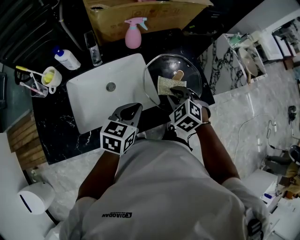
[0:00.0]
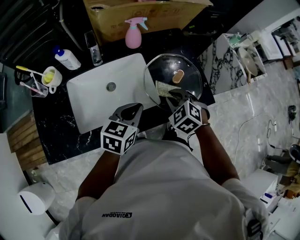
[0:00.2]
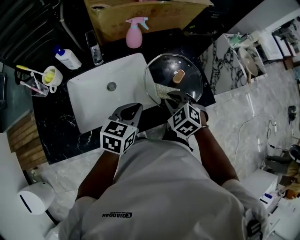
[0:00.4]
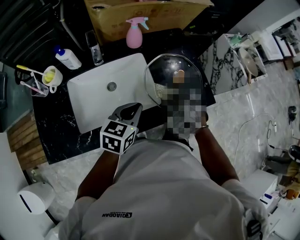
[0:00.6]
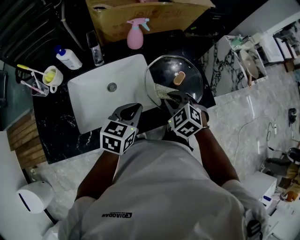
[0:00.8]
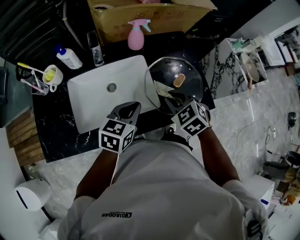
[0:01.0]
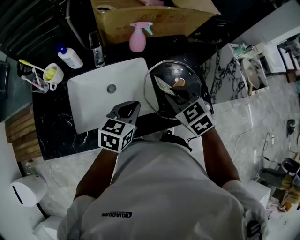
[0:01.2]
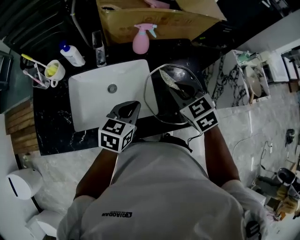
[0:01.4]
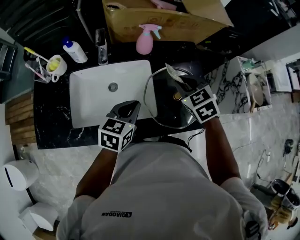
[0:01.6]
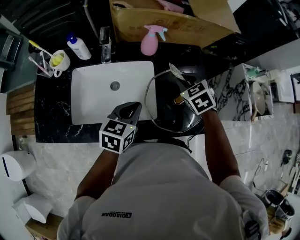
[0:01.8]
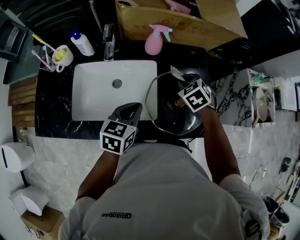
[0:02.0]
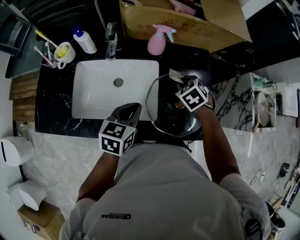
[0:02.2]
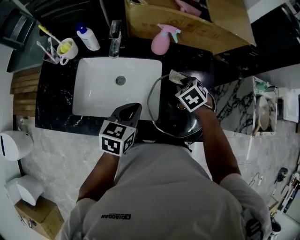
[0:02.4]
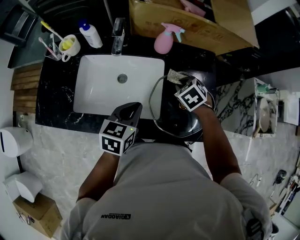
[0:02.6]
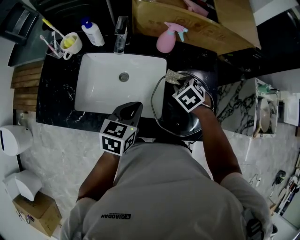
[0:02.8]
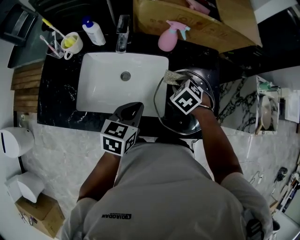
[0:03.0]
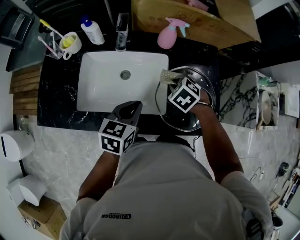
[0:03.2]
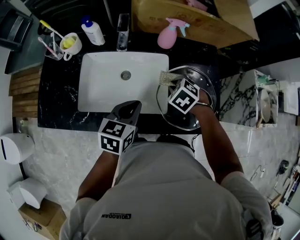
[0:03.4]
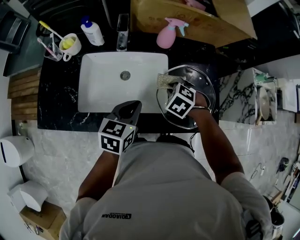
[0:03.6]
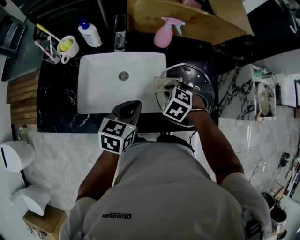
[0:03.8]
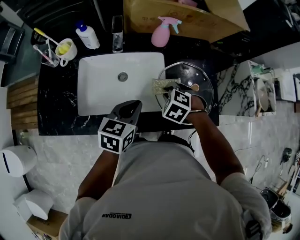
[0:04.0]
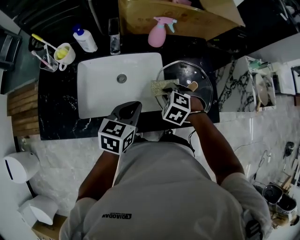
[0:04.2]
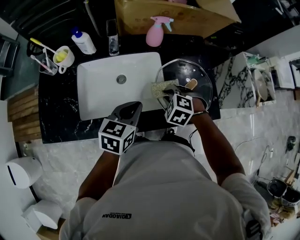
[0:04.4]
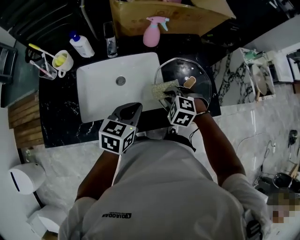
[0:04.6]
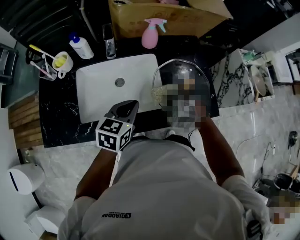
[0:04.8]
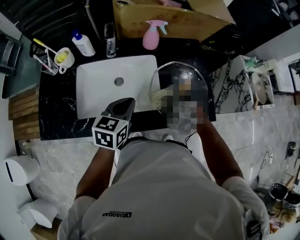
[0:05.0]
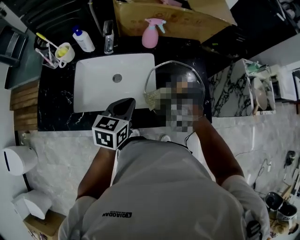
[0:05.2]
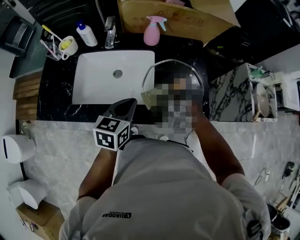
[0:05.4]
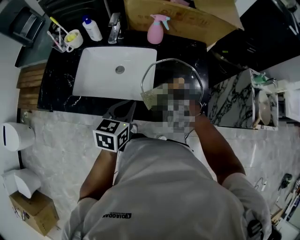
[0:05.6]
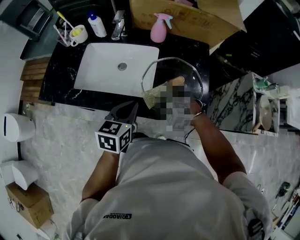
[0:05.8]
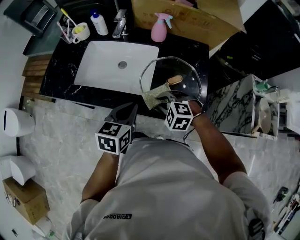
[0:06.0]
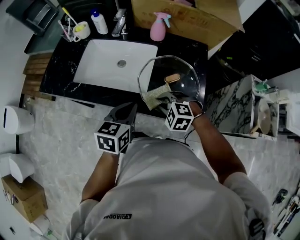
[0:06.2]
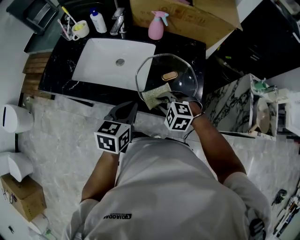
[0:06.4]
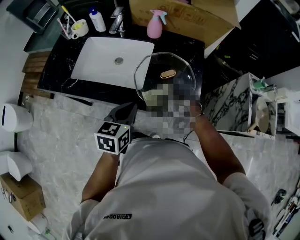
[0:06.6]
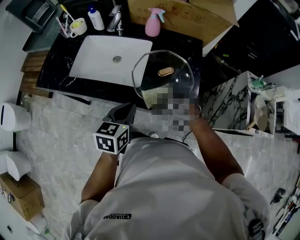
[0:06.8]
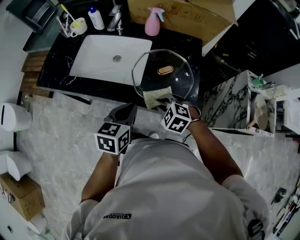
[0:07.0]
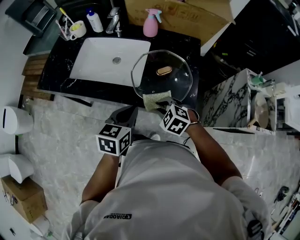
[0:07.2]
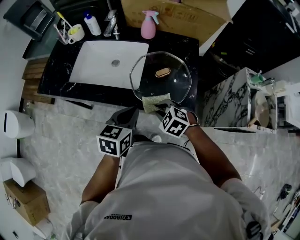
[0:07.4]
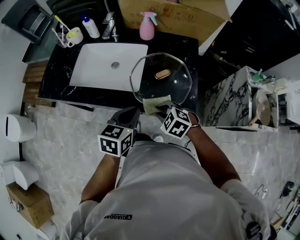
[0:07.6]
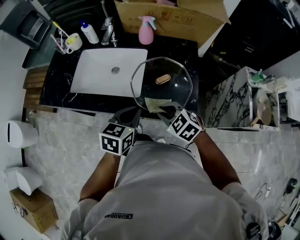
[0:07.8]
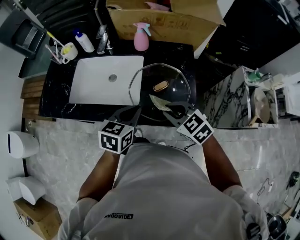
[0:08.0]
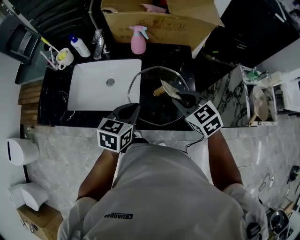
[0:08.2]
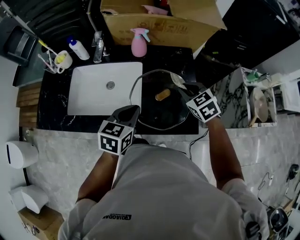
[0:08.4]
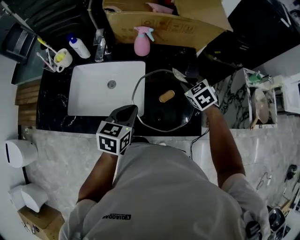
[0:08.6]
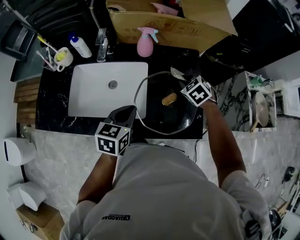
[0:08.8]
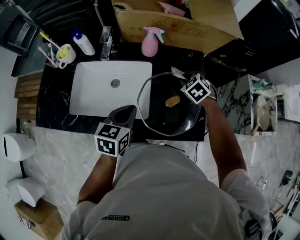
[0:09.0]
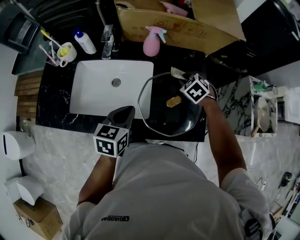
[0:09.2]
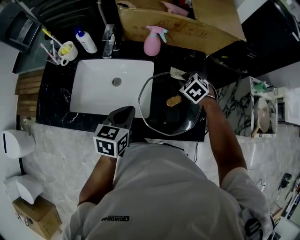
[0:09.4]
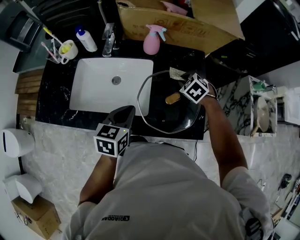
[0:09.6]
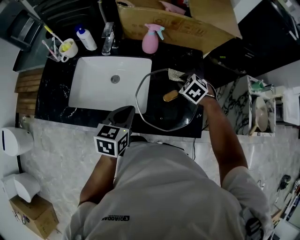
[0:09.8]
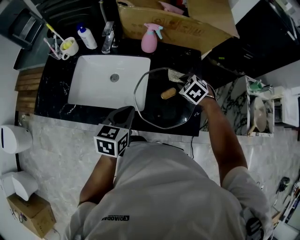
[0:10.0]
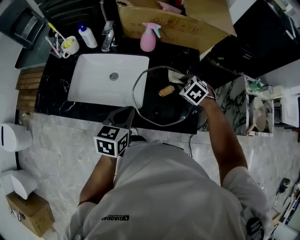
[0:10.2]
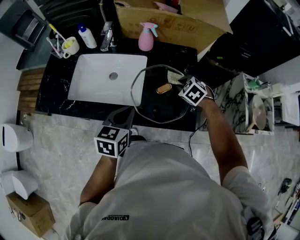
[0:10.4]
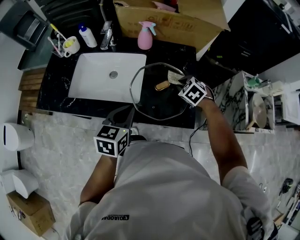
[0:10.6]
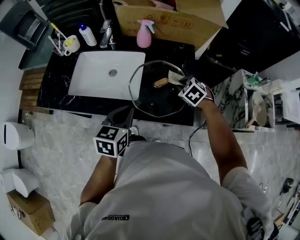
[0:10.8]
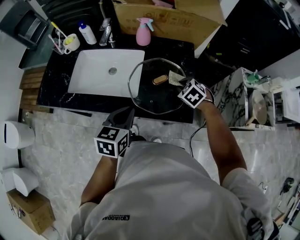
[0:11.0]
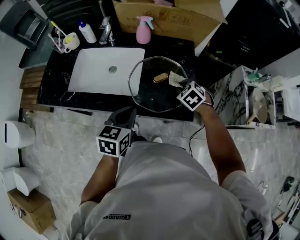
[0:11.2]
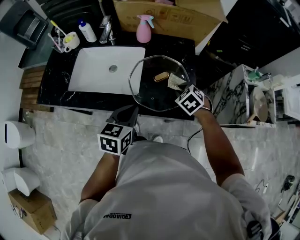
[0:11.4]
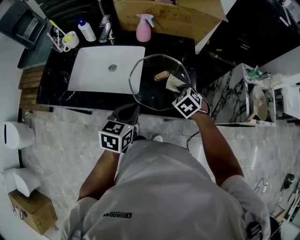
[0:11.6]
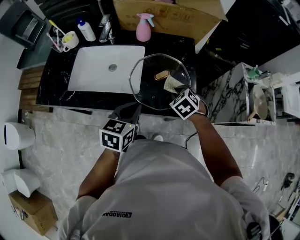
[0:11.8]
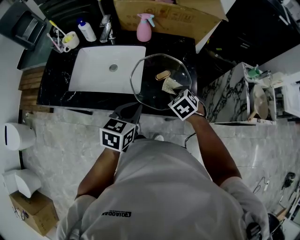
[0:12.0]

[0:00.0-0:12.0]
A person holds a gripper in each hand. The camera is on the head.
0:00.0 to 0:01.6: The right gripper shifts roughly 15 cm forward and upward, while the left gripper goes approximately 5 cm forward.
0:01.6 to 0:03.0: The right gripper travels downward and to the left by approximately 10 cm, and rotates roughly 30 degrees.
0:03.0 to 0:04.4: The right gripper travels backward by some 10 cm.
0:04.4 to 0:06.0: The right gripper ends up roughly 10 cm from where it was, and turns by roughly 30 degrees. Meanwhile the left gripper ends up about 15 cm from where it was, and changes its angle by about 20 degrees.
0:06.0 to 0:07.6: The two grippers go roughly 5 cm backward. The right gripper swivels some 20 degrees.
0:07.6 to 0:09.0: The left gripper goes approximately 15 cm forward and to the left. The right gripper is displaced forward by some 30 cm, and changes its angle by roughly 30 degrees.
0:09.0 to 0:10.4: The two grippers go about 10 cm backward.
0:10.4 to 0:12.0: The left gripper ends up roughly 5 cm from where it was, while the right gripper shifts roughly 10 cm backward.

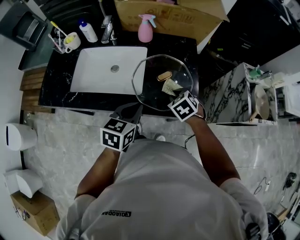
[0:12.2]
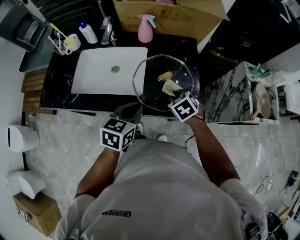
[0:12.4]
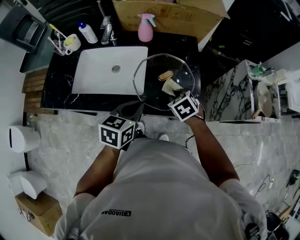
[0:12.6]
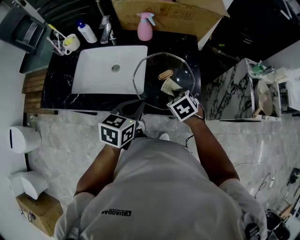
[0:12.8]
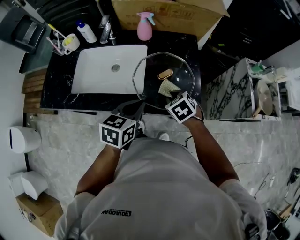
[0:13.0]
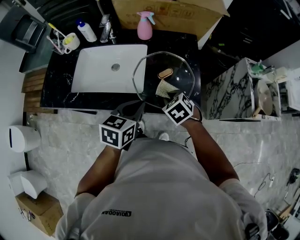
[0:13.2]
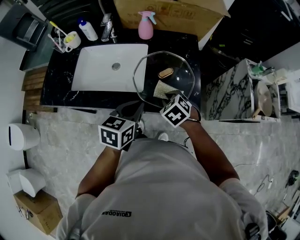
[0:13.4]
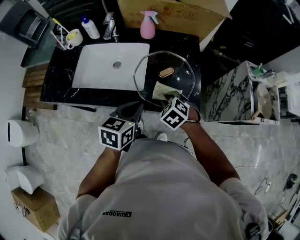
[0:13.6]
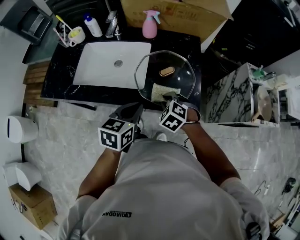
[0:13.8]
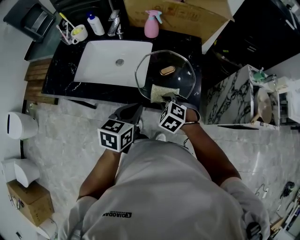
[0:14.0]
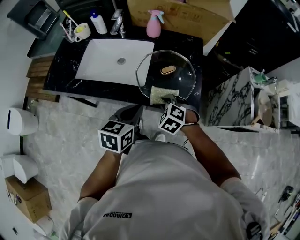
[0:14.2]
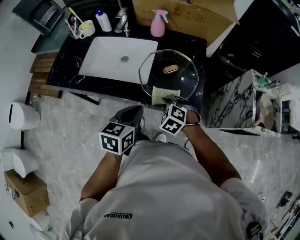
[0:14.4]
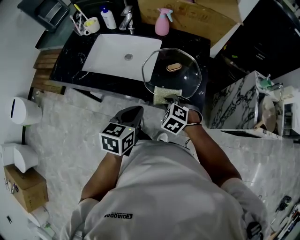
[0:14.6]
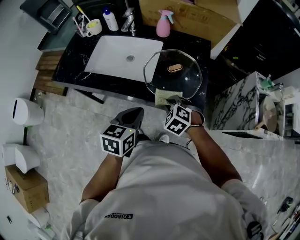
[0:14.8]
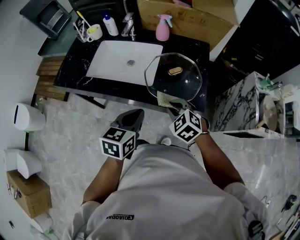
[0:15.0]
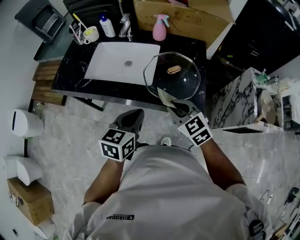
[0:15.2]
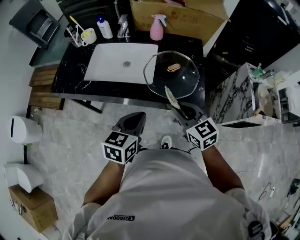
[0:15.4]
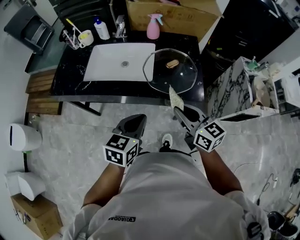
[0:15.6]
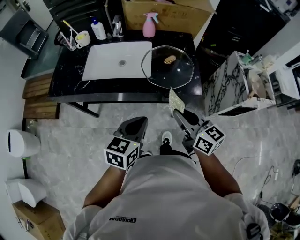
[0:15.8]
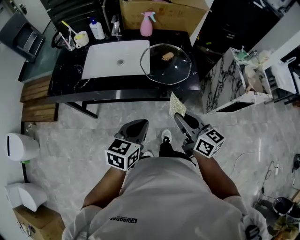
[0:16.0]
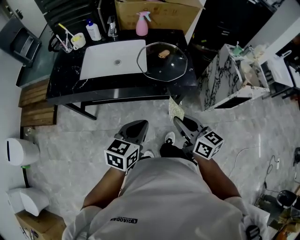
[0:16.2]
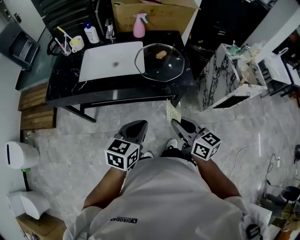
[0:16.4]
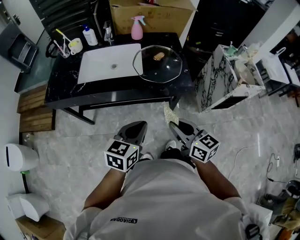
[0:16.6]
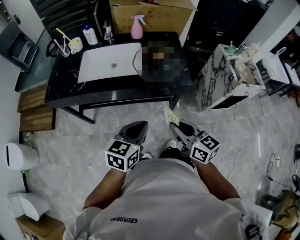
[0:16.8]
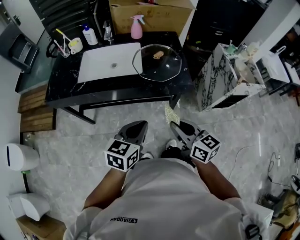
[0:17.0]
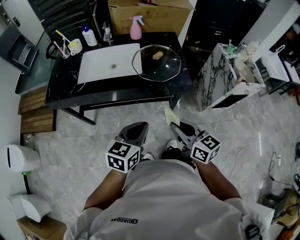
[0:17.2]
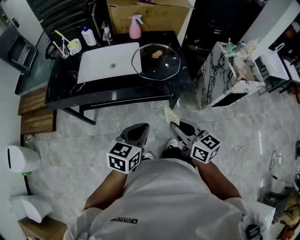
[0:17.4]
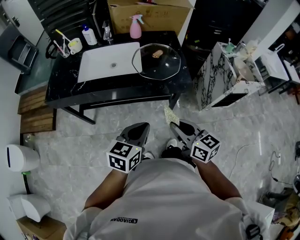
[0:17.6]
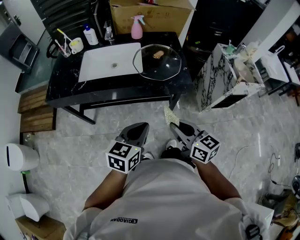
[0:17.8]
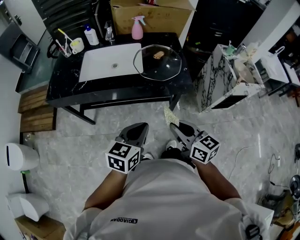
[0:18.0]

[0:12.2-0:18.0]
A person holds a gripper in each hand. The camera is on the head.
0:12.2 to 0:13.6: The right gripper ends up roughly 5 cm from where it was.
0:13.6 to 0:15.0: The left gripper shifts approximately 10 cm backward. The right gripper travels backward and upward by some 10 cm.
0:15.0 to 0:16.6: Both grippers travel together backward, approximately 20 cm. The right gripper tips its fingers upward by approximately 40 degrees. Meanwhile the left gripper rotates roughly 20 degrees.
0:16.6 to 0:18.0: There are only small adjustments of the grippers.

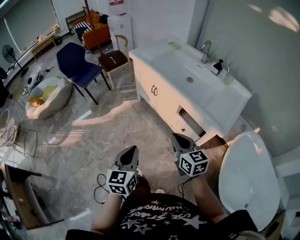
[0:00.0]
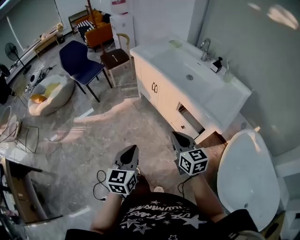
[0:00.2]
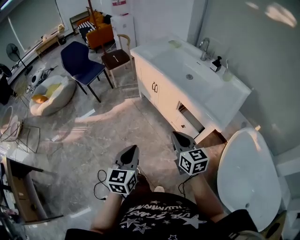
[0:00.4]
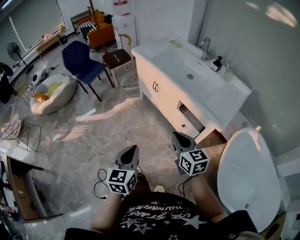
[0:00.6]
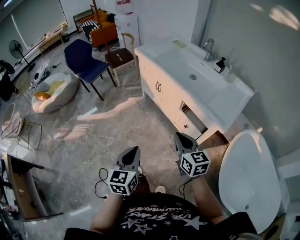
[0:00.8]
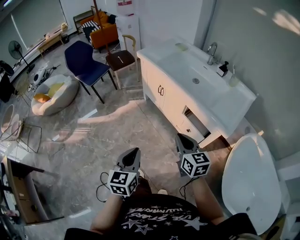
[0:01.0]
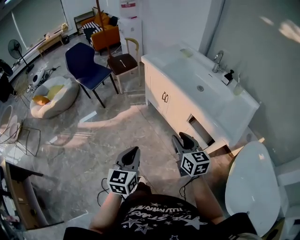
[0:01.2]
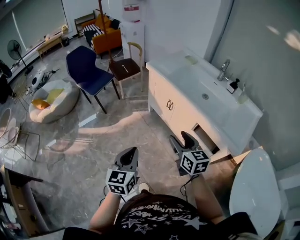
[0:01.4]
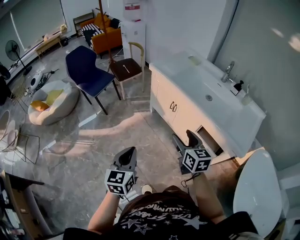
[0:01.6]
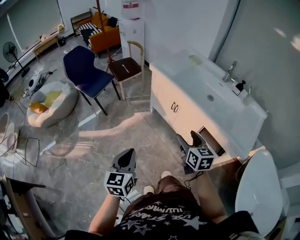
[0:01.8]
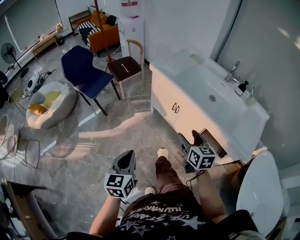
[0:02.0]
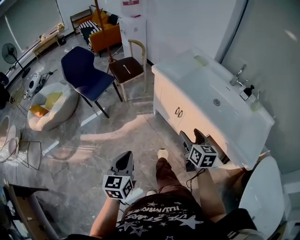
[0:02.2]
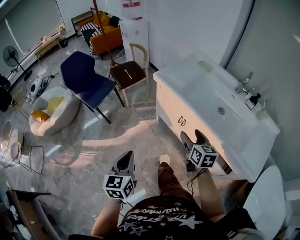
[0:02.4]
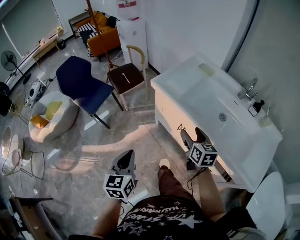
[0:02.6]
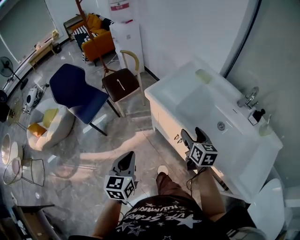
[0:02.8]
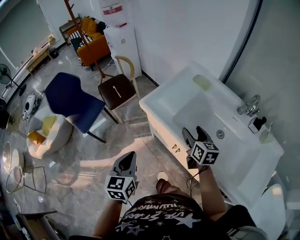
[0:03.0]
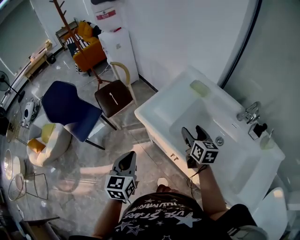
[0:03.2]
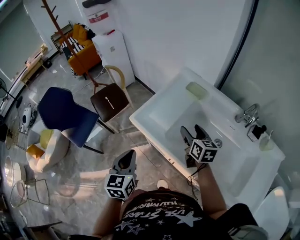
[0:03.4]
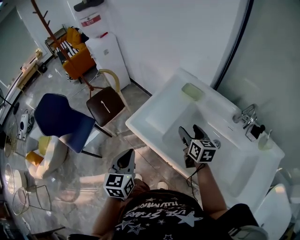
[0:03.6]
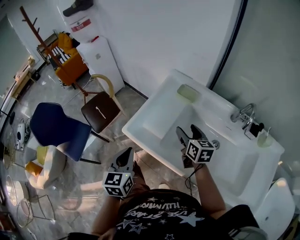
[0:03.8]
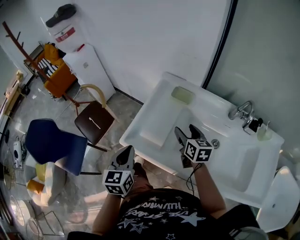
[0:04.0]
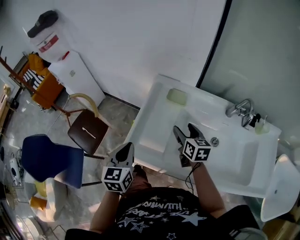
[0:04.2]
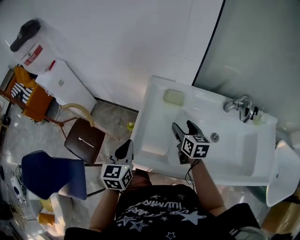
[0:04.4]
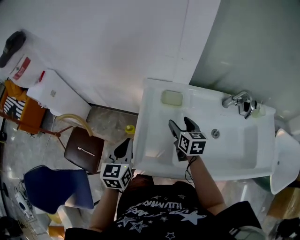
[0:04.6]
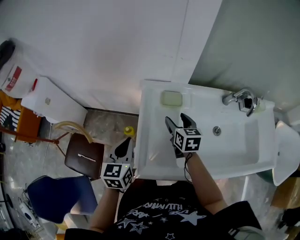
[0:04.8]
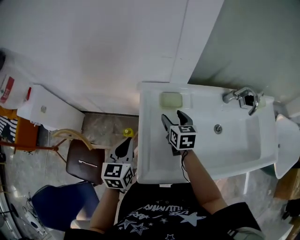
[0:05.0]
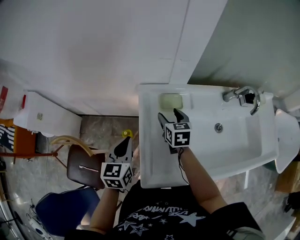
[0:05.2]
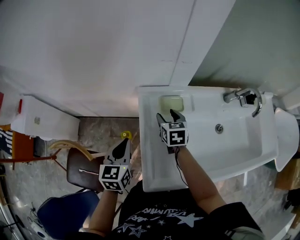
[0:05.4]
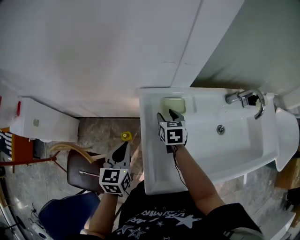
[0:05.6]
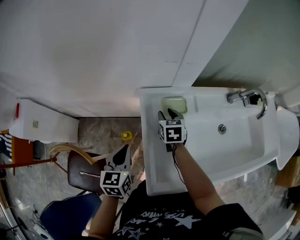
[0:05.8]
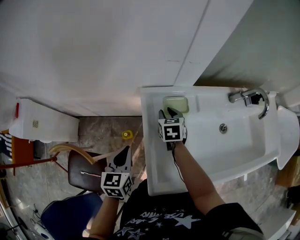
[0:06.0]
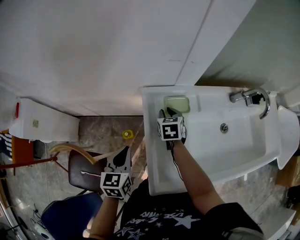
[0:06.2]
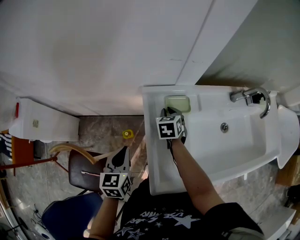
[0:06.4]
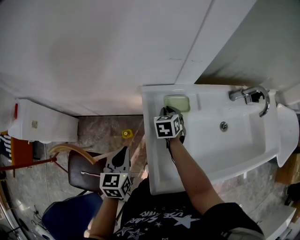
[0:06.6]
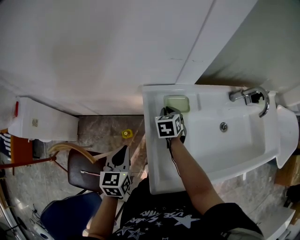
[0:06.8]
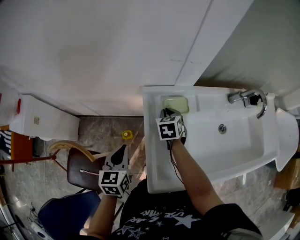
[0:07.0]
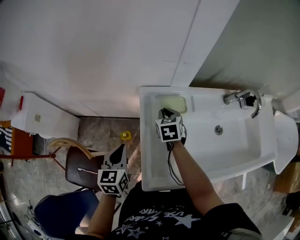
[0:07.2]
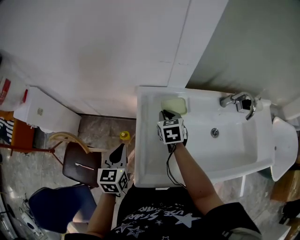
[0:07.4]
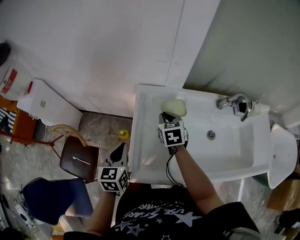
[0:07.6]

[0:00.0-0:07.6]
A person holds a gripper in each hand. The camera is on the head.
0:00.0 to 0:01.6: The left gripper goes approximately 20 cm to the left and forward. Meanwhile the right gripper shifts about 20 cm forward and to the left, and opens its fingers.
0:01.6 to 0:03.0: Both grippers are carried forward, some 40 cm.
0:03.0 to 0:04.6: The right gripper shifts by approximately 25 cm, and turns by some 30 degrees. The left gripper shifts by about 40 cm, and swivels approximately 40 degrees.
0:04.6 to 0:06.0: Both grippers move forward, downward and to the left, approximately 15 cm. The right gripper changes its angle by some 20 degrees, and closes up.
0:06.0 to 0:07.6: The right gripper shifts some 10 cm upward and backward, while the left gripper moves backward and to the right, some 10 cm.
